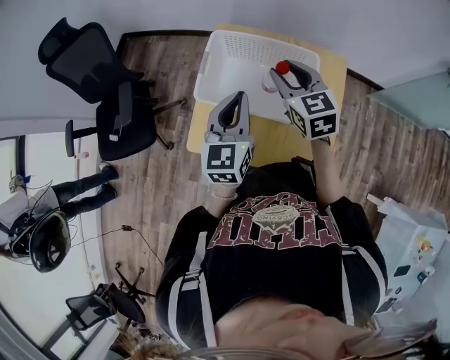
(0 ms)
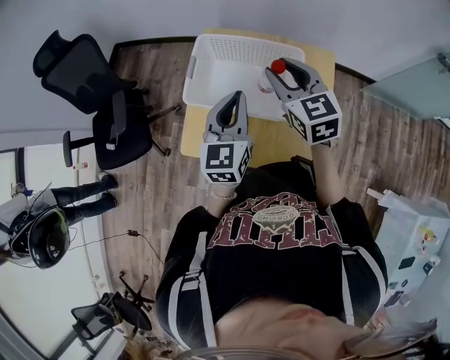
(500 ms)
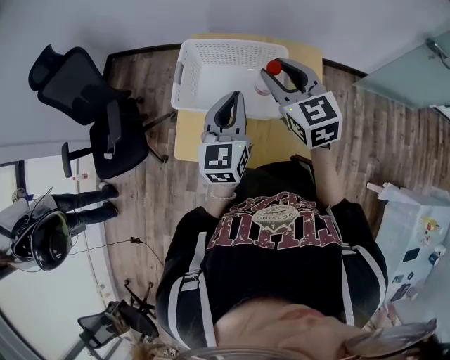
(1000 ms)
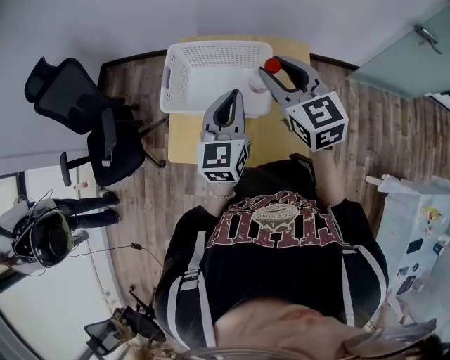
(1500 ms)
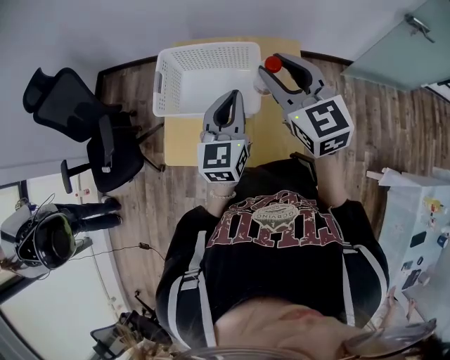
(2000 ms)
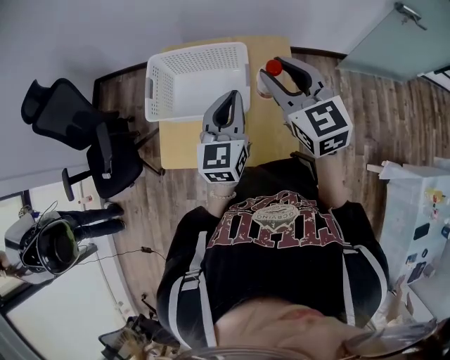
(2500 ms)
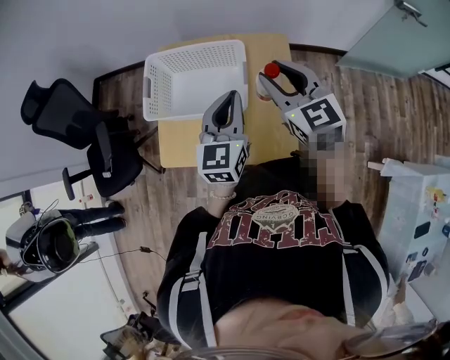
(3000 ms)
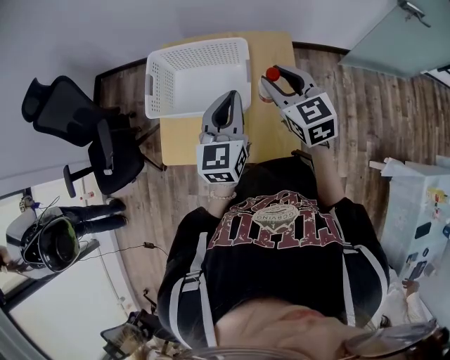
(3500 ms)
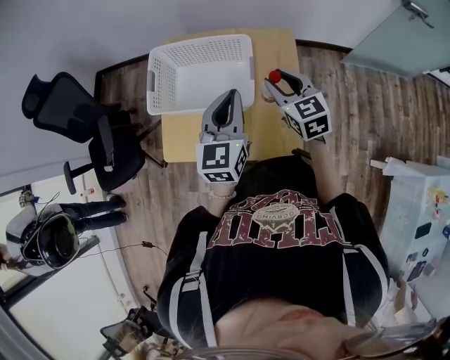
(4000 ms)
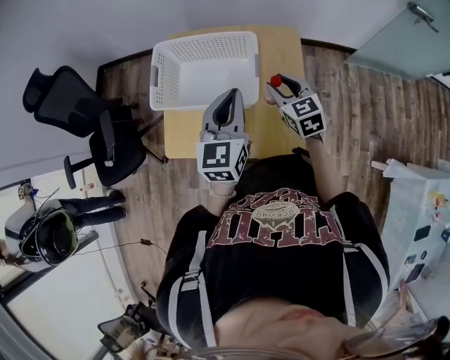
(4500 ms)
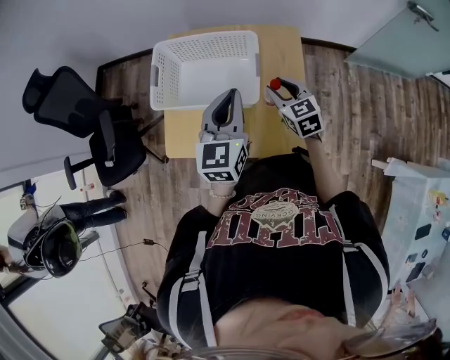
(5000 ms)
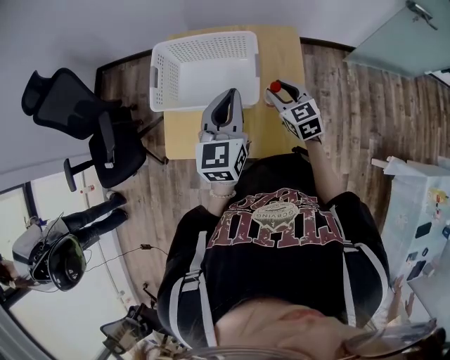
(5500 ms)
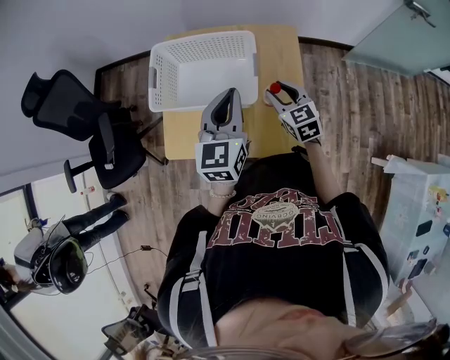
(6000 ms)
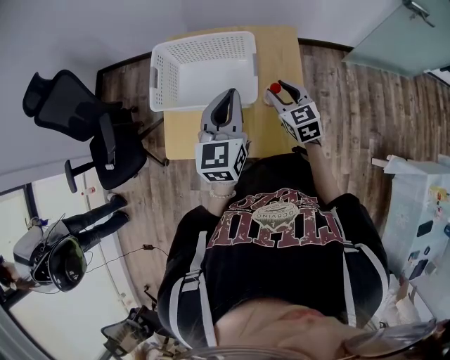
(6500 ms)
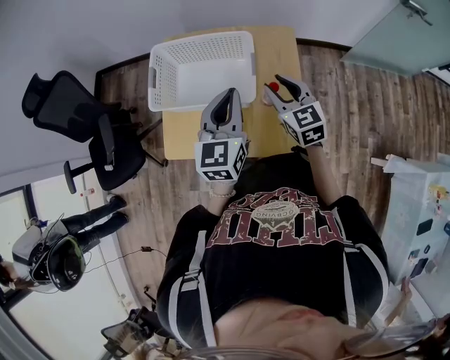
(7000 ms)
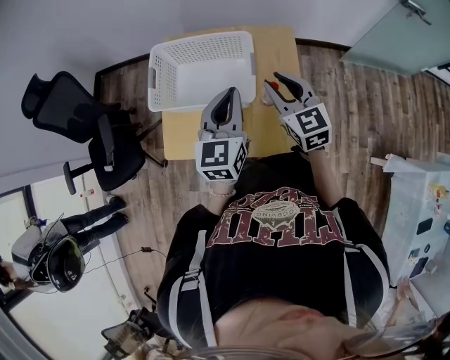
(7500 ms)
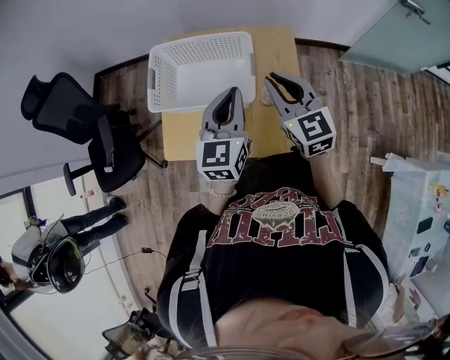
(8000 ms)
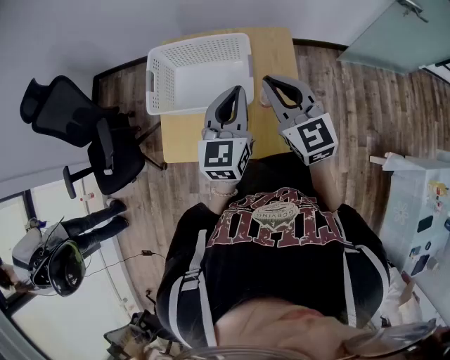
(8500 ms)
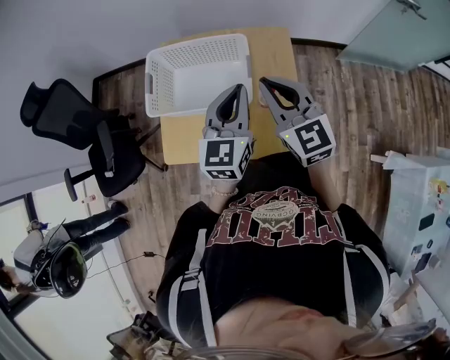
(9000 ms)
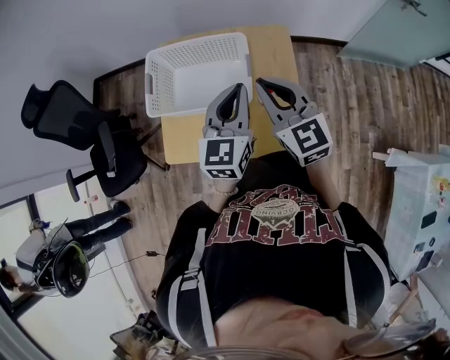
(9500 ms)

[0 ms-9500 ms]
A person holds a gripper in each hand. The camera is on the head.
0 ms to 2000 ms: The left gripper heads to the right, covering about 15 cm; the right gripper travels to the right, upward and backward by approximately 20 cm.
2000 ms to 4000 ms: The right gripper travels downward by about 15 cm.
4000 ms to 5500 ms: The right gripper travels downward by some 10 cm.
5500 ms to 7500 ms: The right gripper goes approximately 10 cm upward.
7500 ms to 9500 ms: The right gripper shifts some 5 cm upward, and closes its fingers.

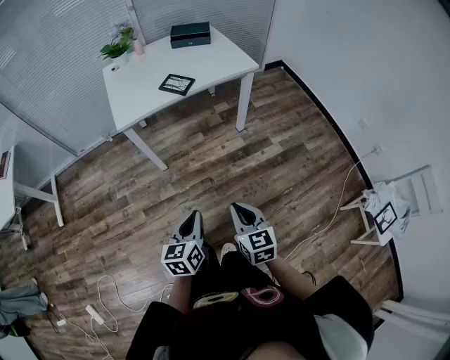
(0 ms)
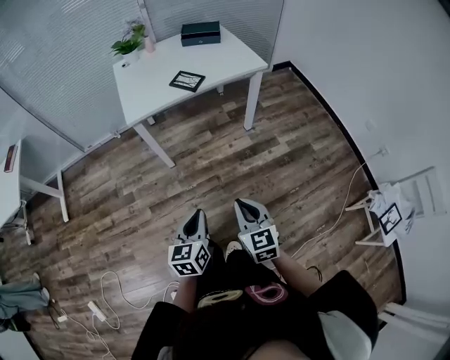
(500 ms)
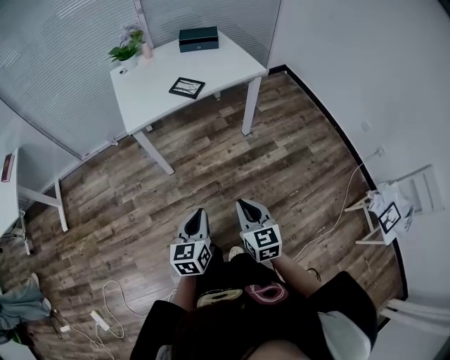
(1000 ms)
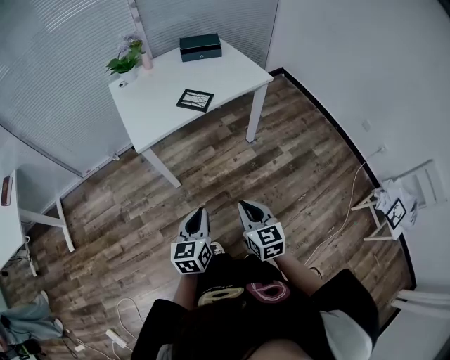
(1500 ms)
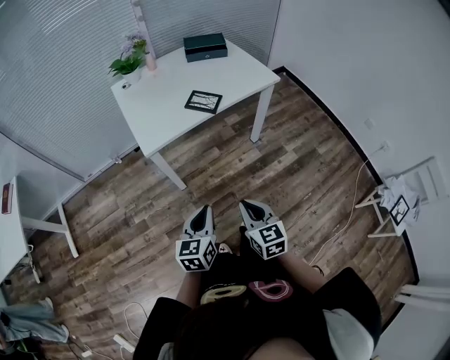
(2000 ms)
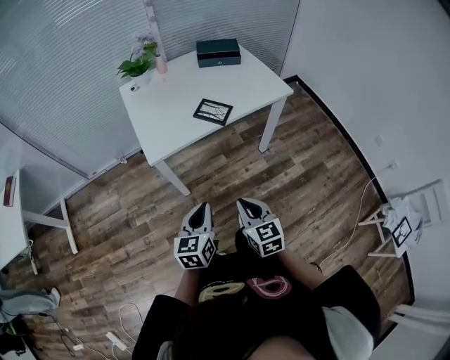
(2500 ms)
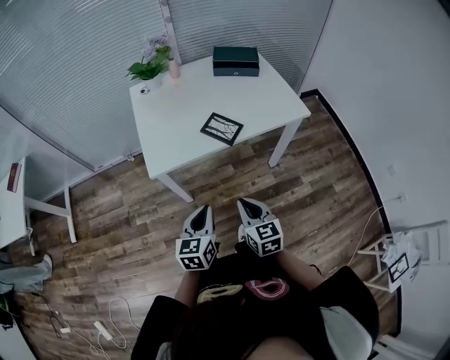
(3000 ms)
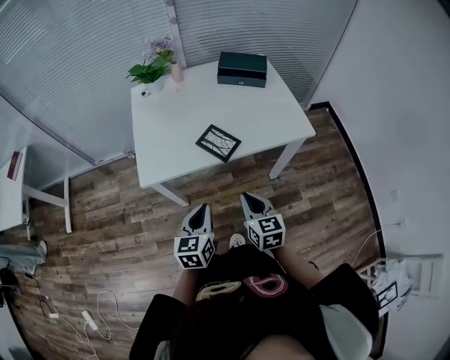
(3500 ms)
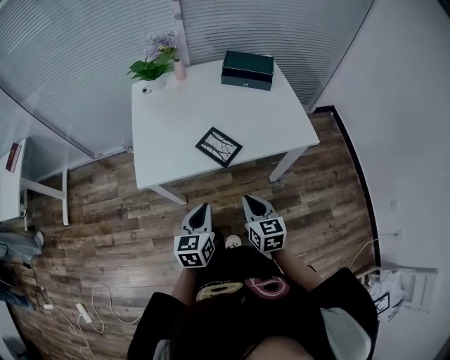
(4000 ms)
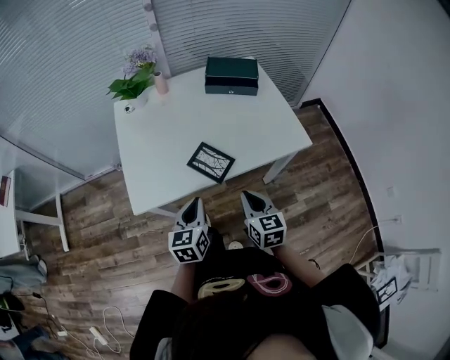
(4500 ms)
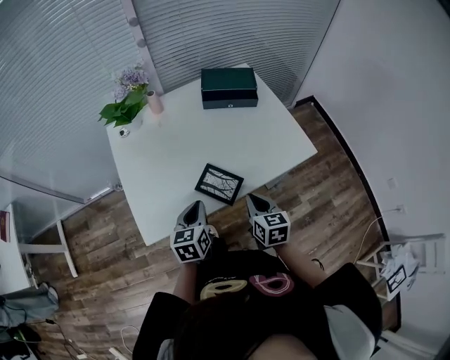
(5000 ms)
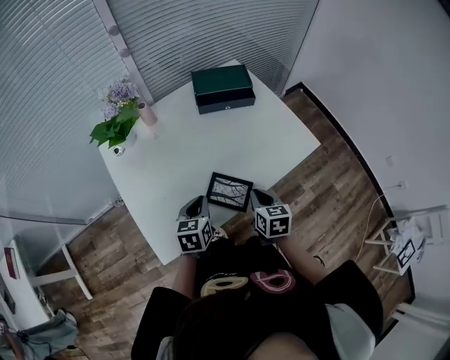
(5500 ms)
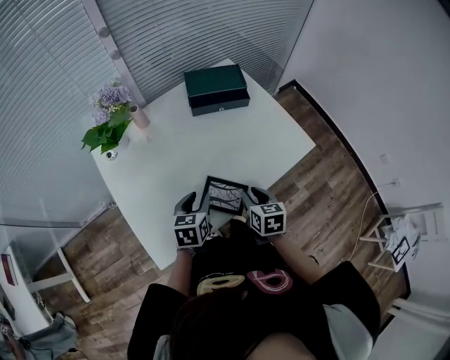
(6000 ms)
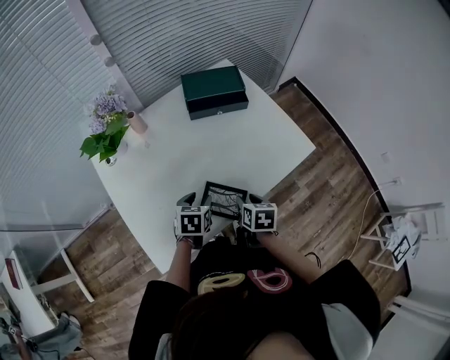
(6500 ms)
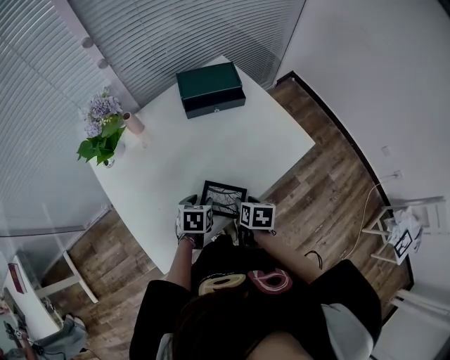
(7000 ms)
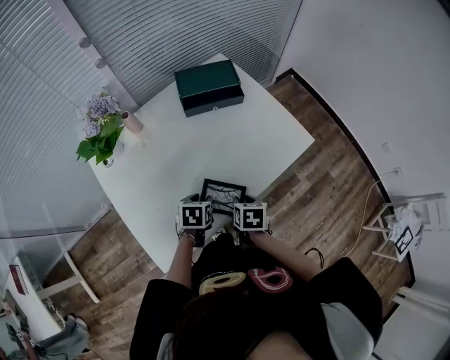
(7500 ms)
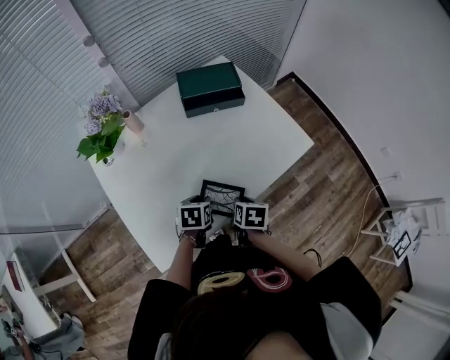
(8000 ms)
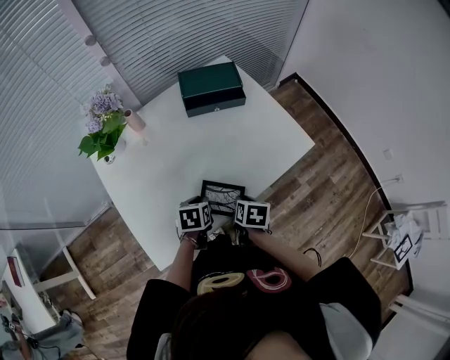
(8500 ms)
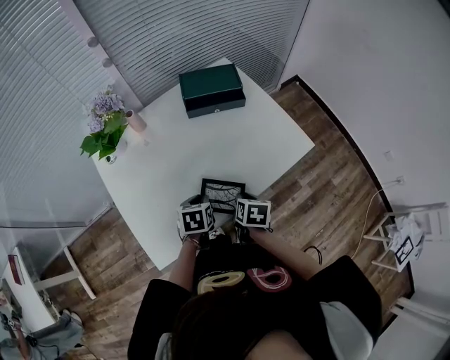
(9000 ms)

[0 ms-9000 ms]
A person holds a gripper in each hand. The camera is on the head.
0 ms to 2000 ms: The left gripper travels forward and to the left by about 20 cm. The right gripper goes approximately 20 cm to the left and forward.
2000 ms to 4500 ms: Both grippers travel together forward, some 35 cm.
4500 ms to 7000 ms: The grippers both shift forward and downward by approximately 20 cm. The right gripper angles its fingers downward, by some 30 degrees, and opens. The left gripper angles its fingers downward, by about 30 degrees, and opens its fingers.
7000 ms to 9000 ms: The right gripper closes up; the left gripper closes.

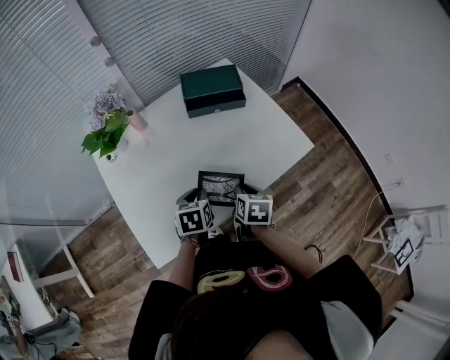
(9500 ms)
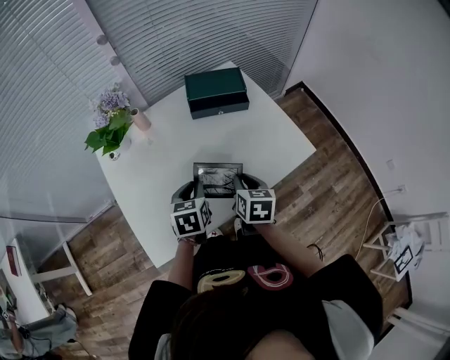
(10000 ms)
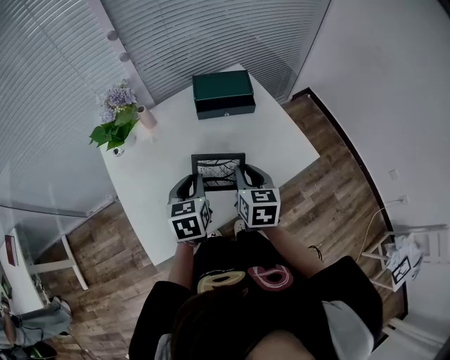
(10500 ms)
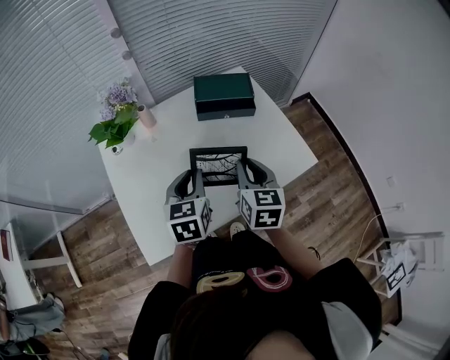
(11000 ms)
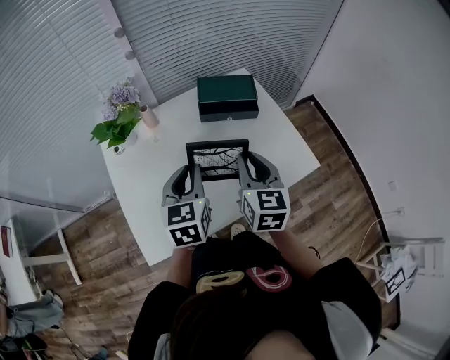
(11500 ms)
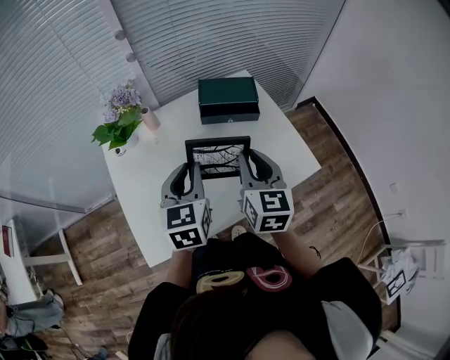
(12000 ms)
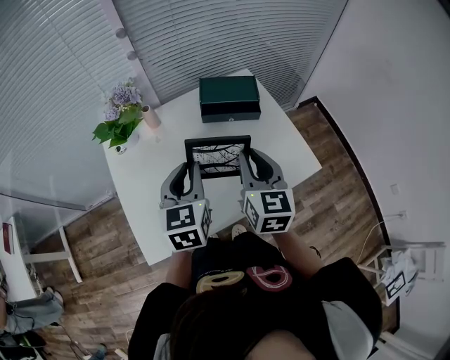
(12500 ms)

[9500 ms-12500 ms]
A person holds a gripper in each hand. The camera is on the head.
9500 ms to 11000 ms: The left gripper shifts roughly 15 cm upward, and turns by approximately 20 degrees. Meanwhile the right gripper travels upward and forward by approximately 15 cm, and rotates approximately 30 degrees.
11000 ms to 12500 ms: The two grippers go some 5 cm upward.

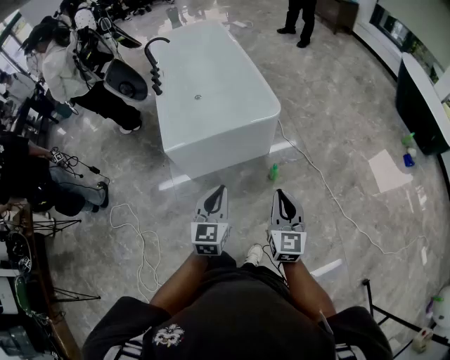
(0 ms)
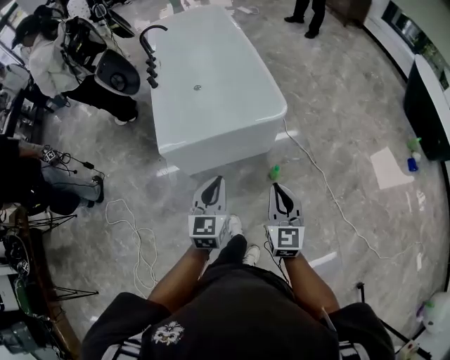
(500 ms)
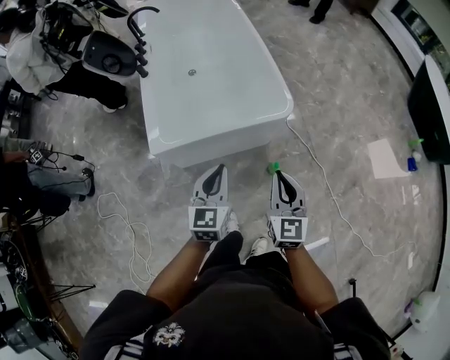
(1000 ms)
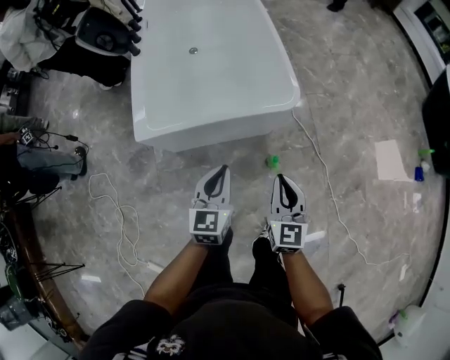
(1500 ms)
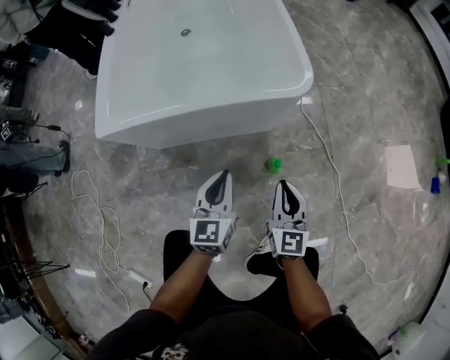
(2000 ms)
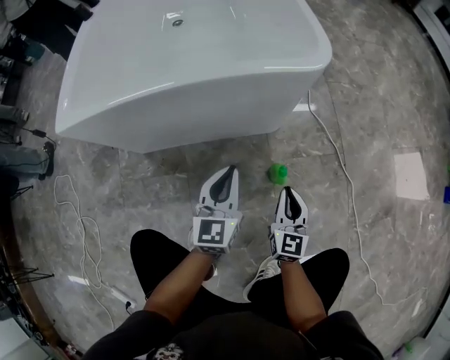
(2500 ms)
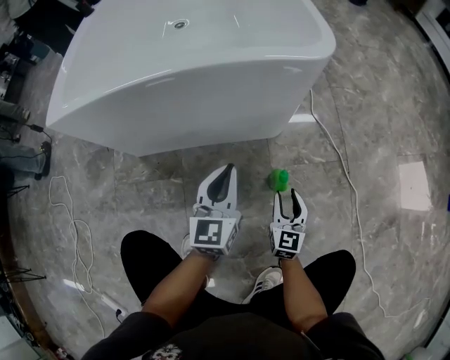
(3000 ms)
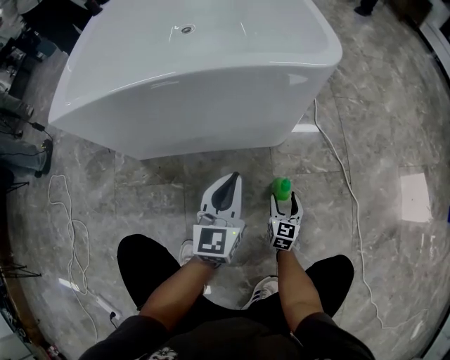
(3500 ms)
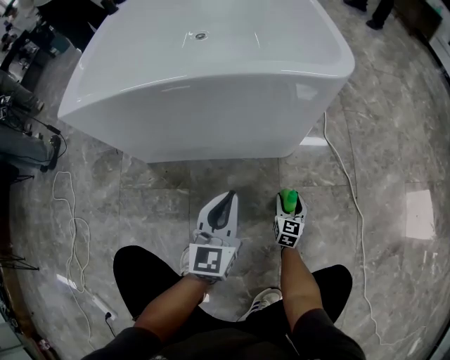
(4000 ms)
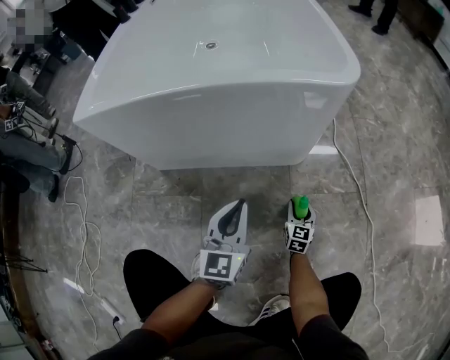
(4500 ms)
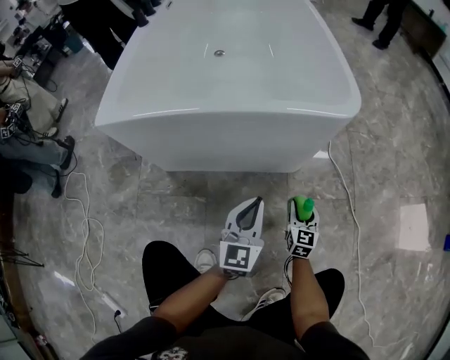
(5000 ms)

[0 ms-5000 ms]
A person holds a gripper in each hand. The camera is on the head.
0 ms to 2500 ms: Both grippers travel together downward and forward, approximately 70 cm.
2500 ms to 5000 ms: The right gripper shifts approximately 5 cm forward, travels downward and back again, approximately 25 cm each way, and opens its fingers.
